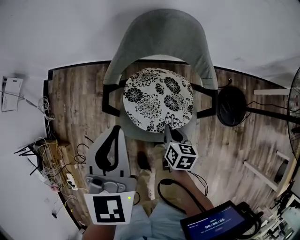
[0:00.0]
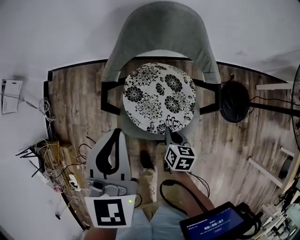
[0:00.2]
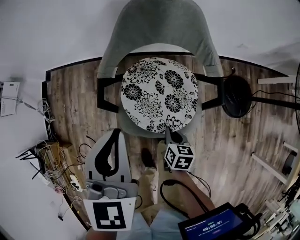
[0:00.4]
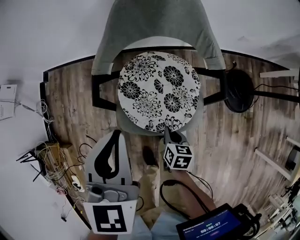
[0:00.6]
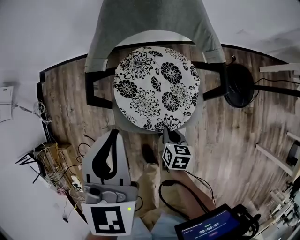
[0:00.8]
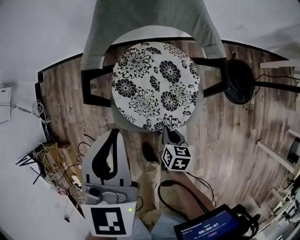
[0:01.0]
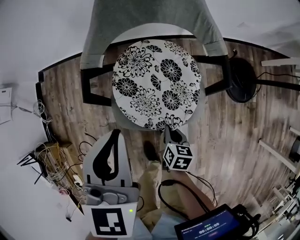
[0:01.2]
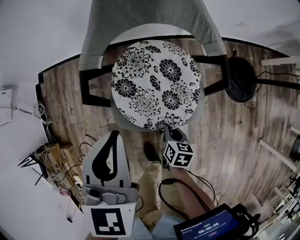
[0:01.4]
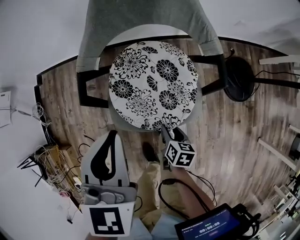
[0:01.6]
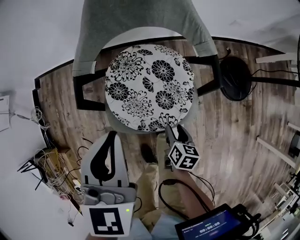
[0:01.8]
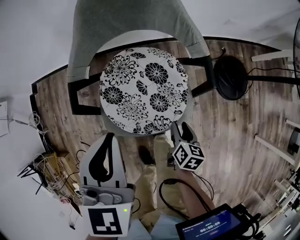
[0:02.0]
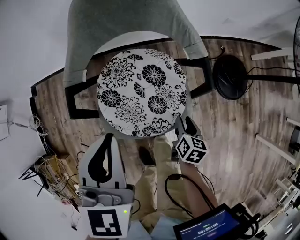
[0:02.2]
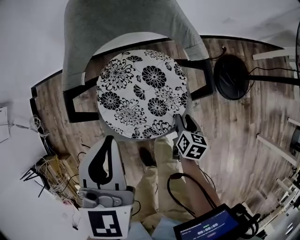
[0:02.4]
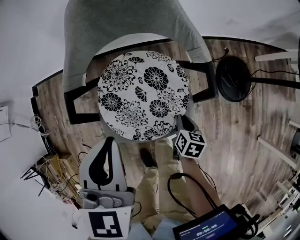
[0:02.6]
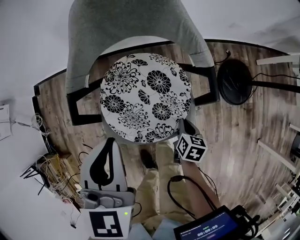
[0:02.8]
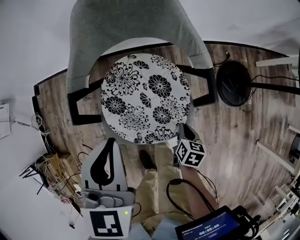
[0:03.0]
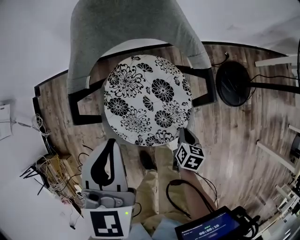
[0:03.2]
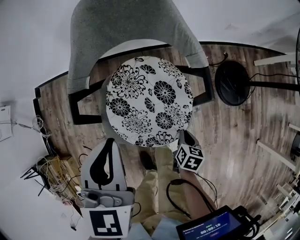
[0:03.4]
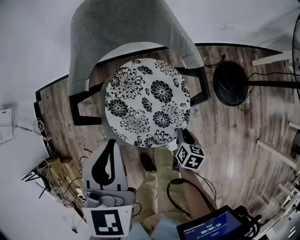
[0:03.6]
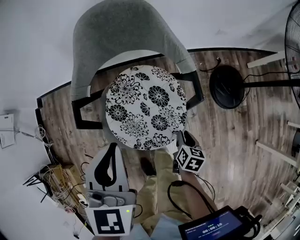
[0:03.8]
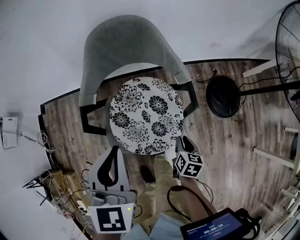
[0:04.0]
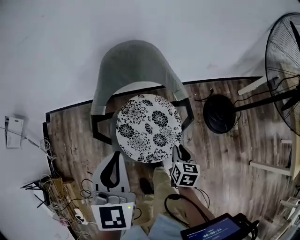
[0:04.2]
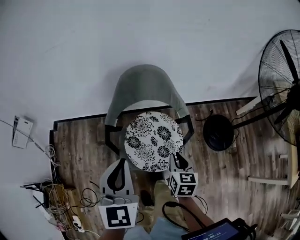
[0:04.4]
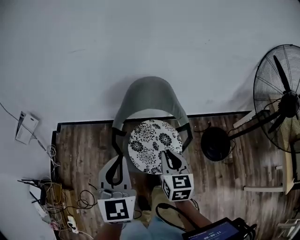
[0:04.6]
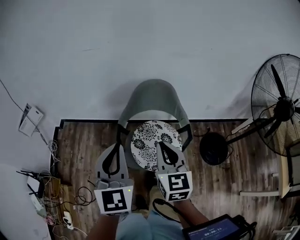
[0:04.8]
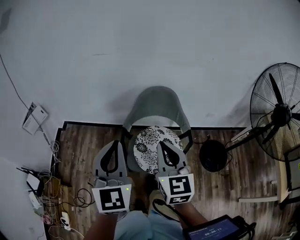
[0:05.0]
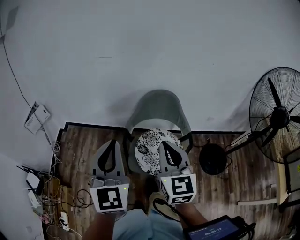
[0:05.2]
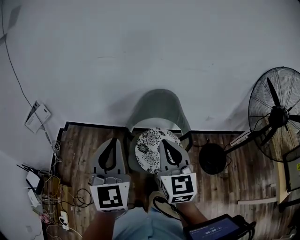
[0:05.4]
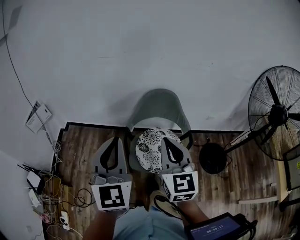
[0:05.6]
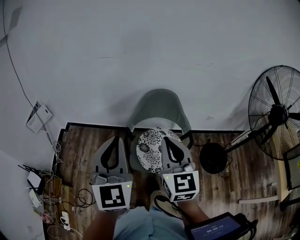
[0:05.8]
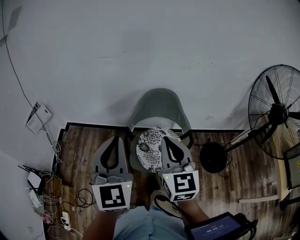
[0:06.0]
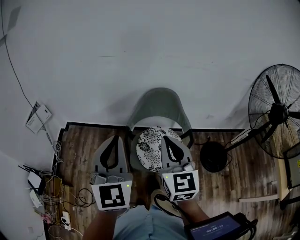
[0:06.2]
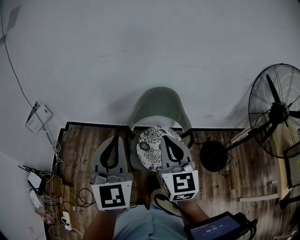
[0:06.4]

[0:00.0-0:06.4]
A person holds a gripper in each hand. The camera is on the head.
0:00.0 to 0:01.6: The right gripper moves downward and backward, about 20 cm, and opens its fingers. The left gripper travels downward and backward by about 10 cm.
0:01.6 to 0:03.2: The left gripper travels forward by about 5 cm. Meanwhile the right gripper goes about 10 cm to the right and forward, and closes its fingers.
0:03.2 to 0:04.8: The left gripper travels upward and backward by roughly 30 cm, and rotates about 30 degrees. The right gripper goes approximately 50 cm upward, angles its fingers upward, by some 50 degrees, and opens and closes again.
0:04.8 to 0:06.4: The right gripper moves upward, approximately 10 cm; the left gripper heads upward and to the left, covering roughly 10 cm.

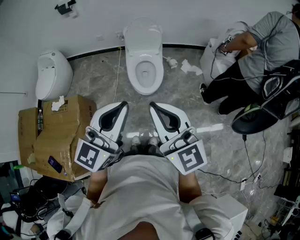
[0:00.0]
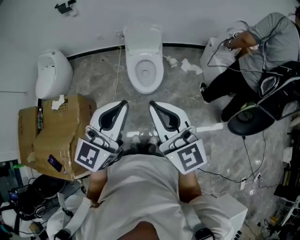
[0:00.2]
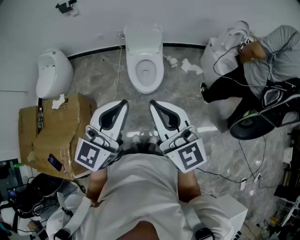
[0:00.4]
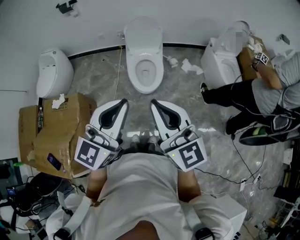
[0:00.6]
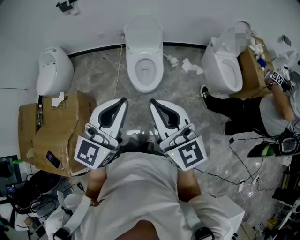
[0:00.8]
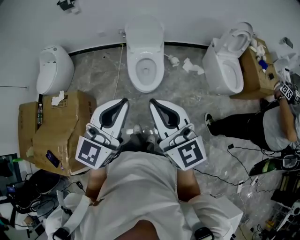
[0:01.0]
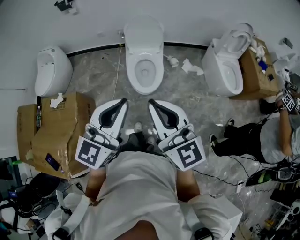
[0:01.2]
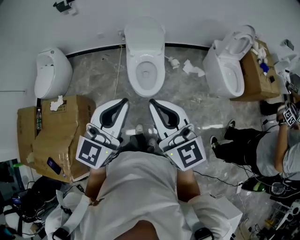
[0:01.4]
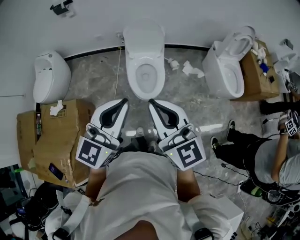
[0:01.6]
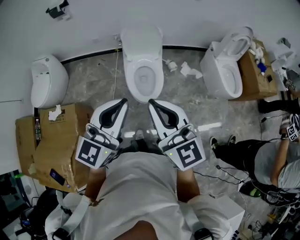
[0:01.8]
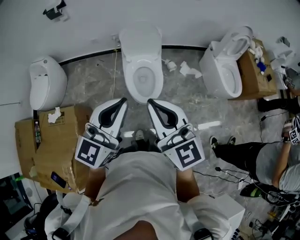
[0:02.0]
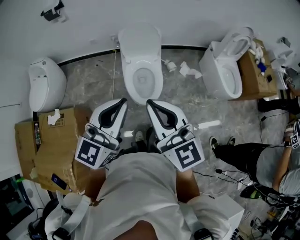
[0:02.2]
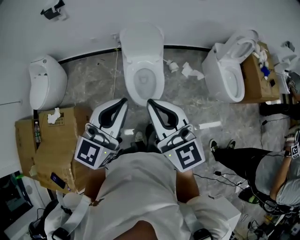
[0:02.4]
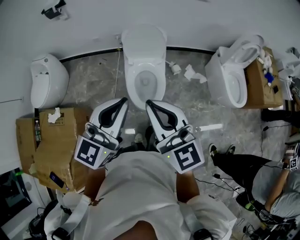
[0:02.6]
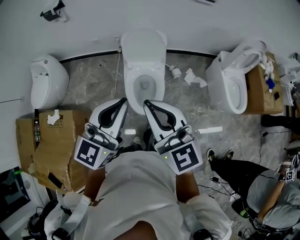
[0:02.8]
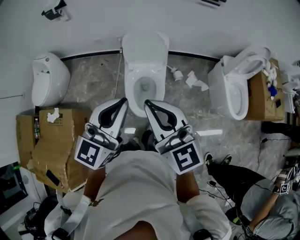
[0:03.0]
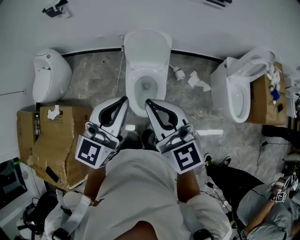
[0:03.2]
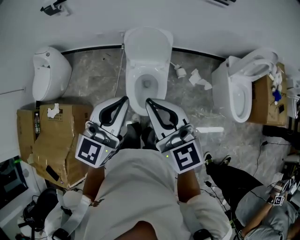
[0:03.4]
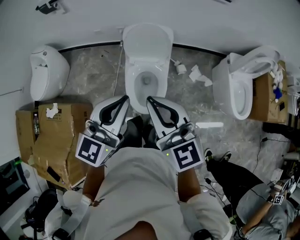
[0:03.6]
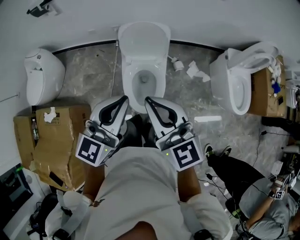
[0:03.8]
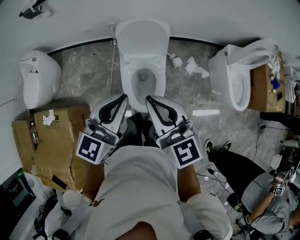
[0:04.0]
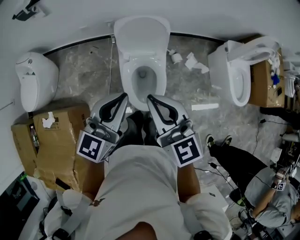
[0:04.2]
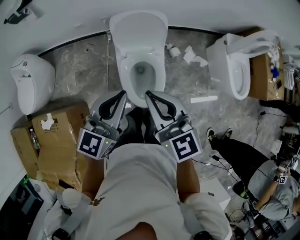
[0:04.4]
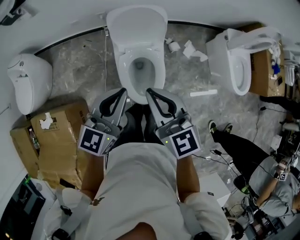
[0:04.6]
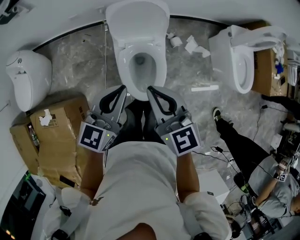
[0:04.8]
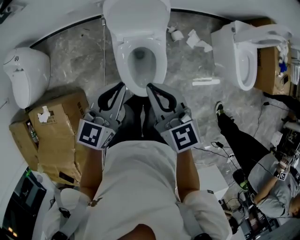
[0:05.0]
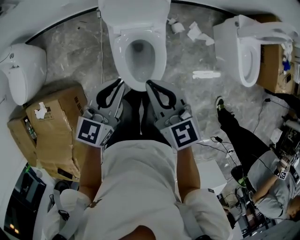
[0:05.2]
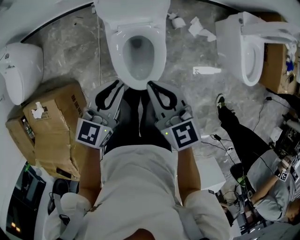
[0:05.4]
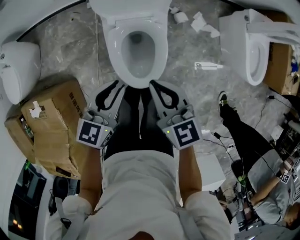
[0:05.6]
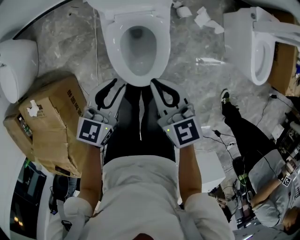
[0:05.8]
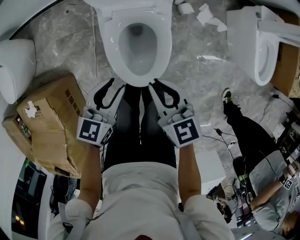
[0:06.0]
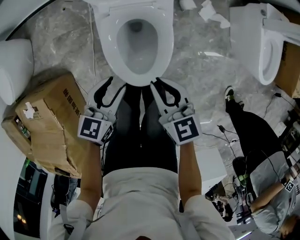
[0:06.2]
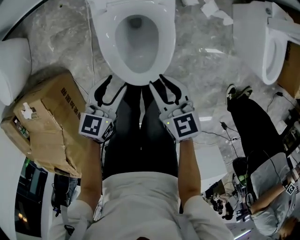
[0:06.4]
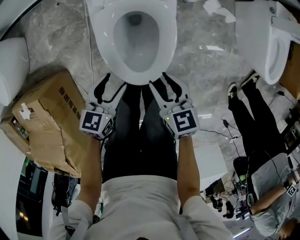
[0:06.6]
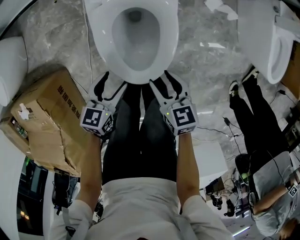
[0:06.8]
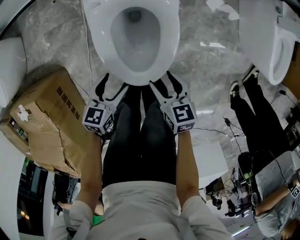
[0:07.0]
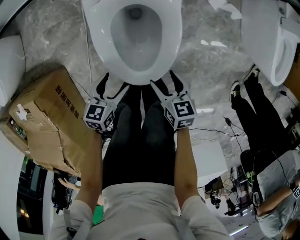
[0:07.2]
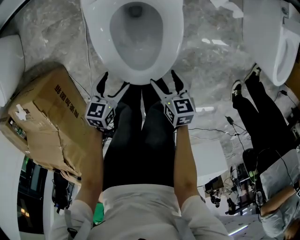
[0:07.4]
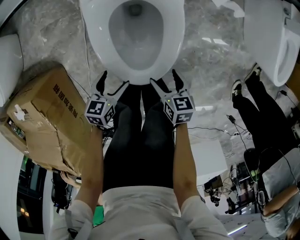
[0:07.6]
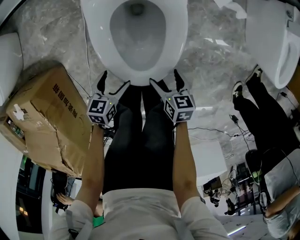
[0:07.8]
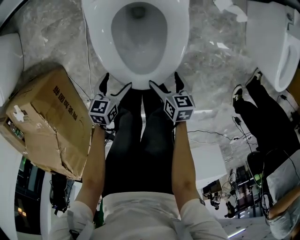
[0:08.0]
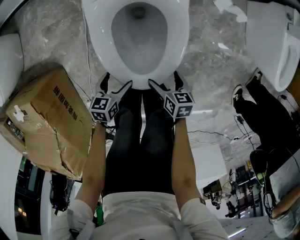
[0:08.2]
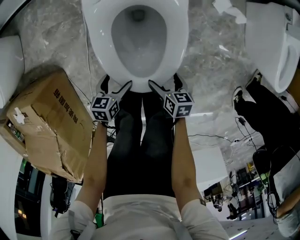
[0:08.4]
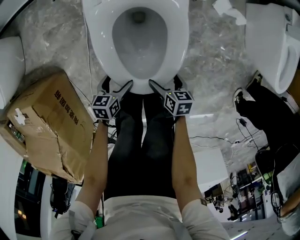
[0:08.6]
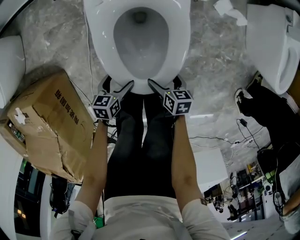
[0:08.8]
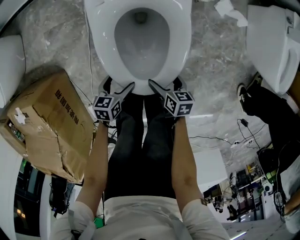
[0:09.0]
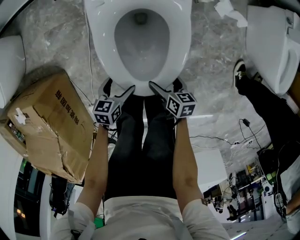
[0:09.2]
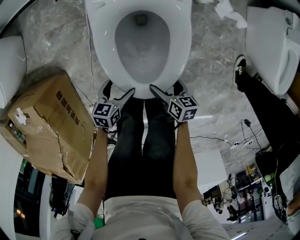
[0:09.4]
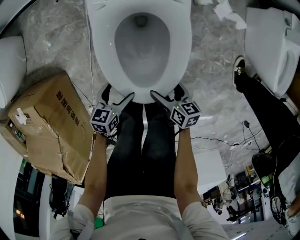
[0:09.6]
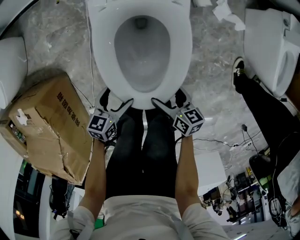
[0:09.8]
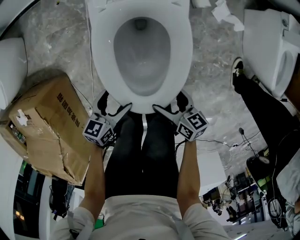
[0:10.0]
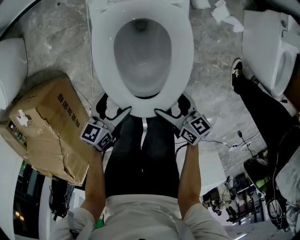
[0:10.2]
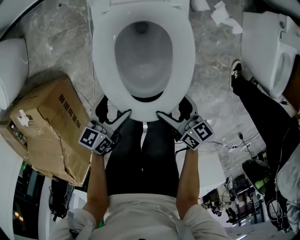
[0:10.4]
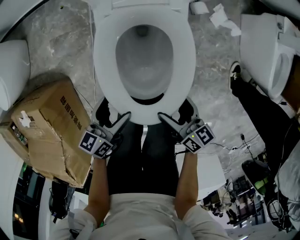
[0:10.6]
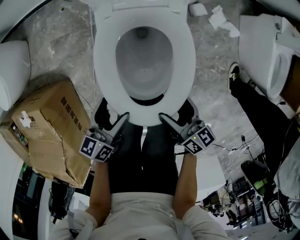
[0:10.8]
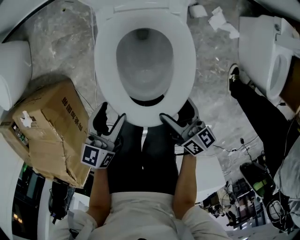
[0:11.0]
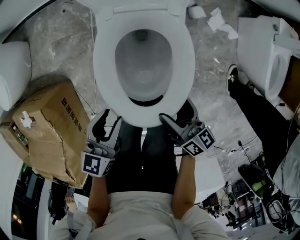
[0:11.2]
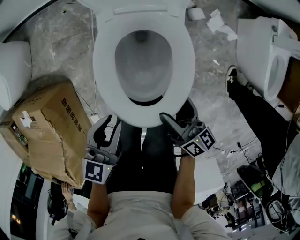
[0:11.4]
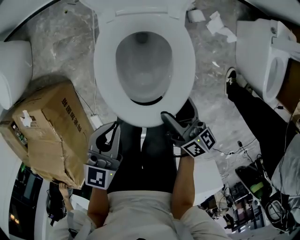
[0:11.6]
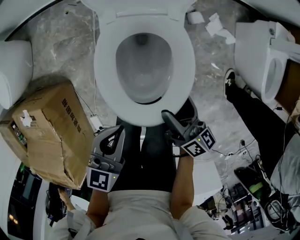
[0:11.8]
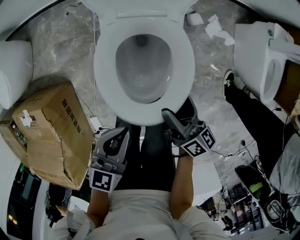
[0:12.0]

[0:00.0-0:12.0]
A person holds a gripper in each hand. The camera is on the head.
0:00.0 to 0:01.6: The grippers both shift forward by about 10 cm.
0:01.6 to 0:03.0: Both grippers move forward, about 20 cm.
0:03.0 to 0:04.4: The grippers both shift forward and downward by about 20 cm.
0:04.4 to 0:06.0: The grippers both shift downward by roughly 35 cm. The left gripper changes its angle by approximately 30 degrees, while the right gripper rotates about 30 degrees.
0:06.0 to 0:07.6: The two grippers go roughly 30 cm downward. The left gripper changes its angle by some 20 degrees, and opens up, while the right gripper turns by approximately 30 degrees, and opens up.
0:07.6 to 0:09.0: Both grippers move downward, approximately 5 cm.
0:09.0 to 0:10.4: Both grippers move upward, about 20 cm. The left gripper turns by some 20 degrees. Meanwhile the right gripper swivels some 20 degrees.
0:10.4 to 0:12.0: The left gripper is displaced upward by approximately 20 cm, turns by approximately 30 degrees, and closes up. The right gripper moves upward and forward, approximately 15 cm, and rotates approximately 20 degrees.

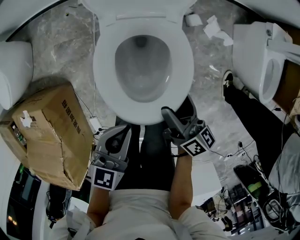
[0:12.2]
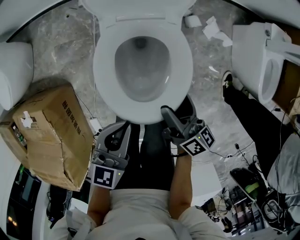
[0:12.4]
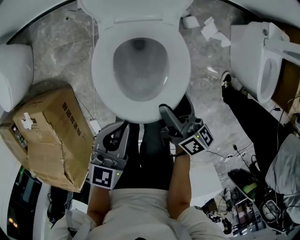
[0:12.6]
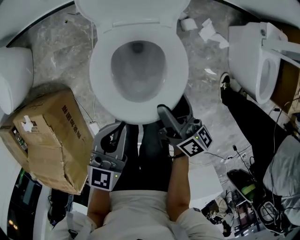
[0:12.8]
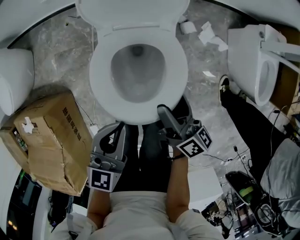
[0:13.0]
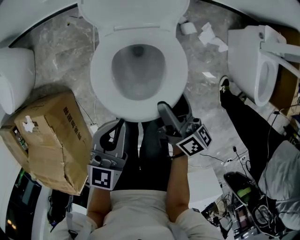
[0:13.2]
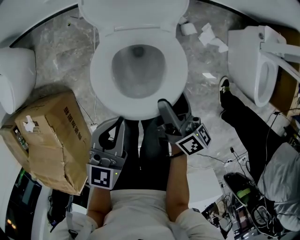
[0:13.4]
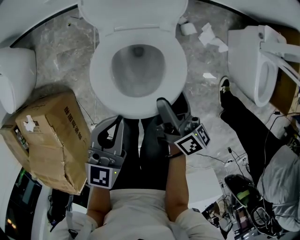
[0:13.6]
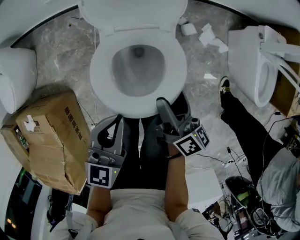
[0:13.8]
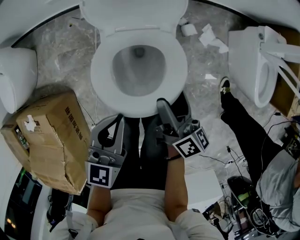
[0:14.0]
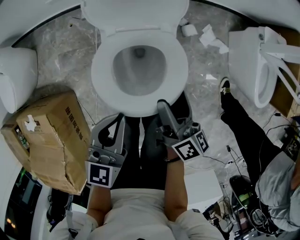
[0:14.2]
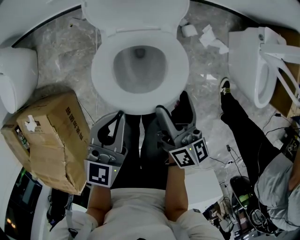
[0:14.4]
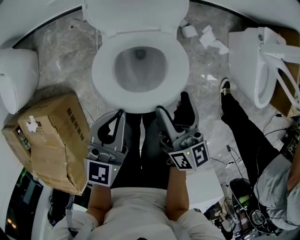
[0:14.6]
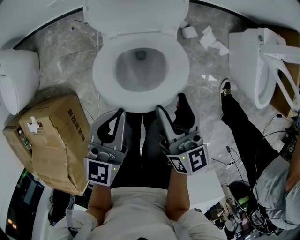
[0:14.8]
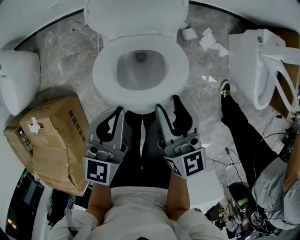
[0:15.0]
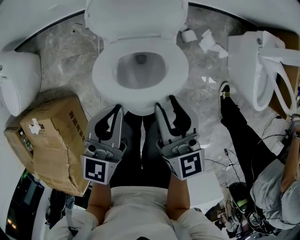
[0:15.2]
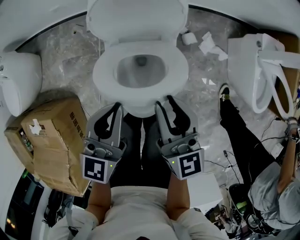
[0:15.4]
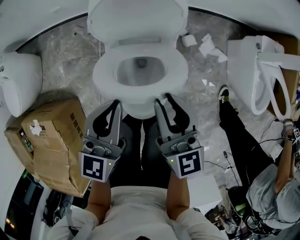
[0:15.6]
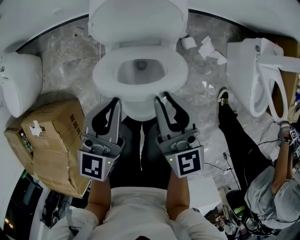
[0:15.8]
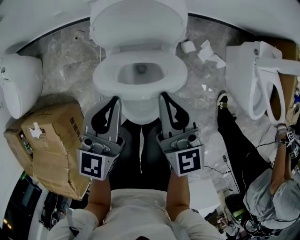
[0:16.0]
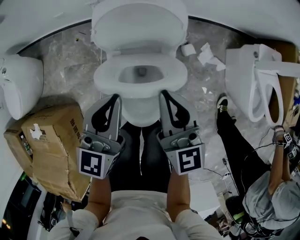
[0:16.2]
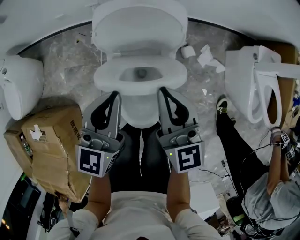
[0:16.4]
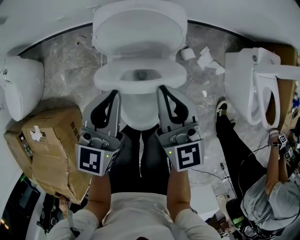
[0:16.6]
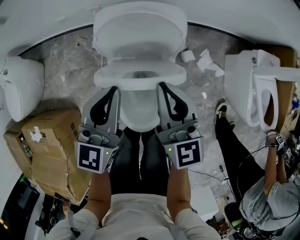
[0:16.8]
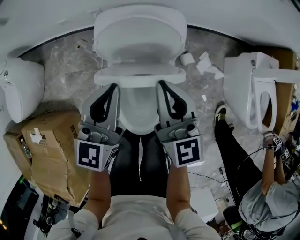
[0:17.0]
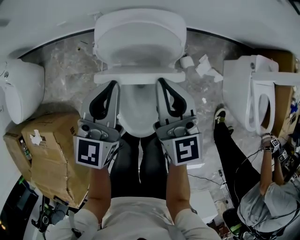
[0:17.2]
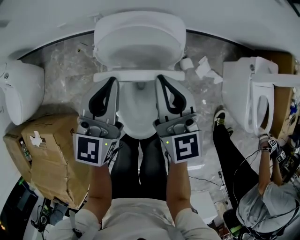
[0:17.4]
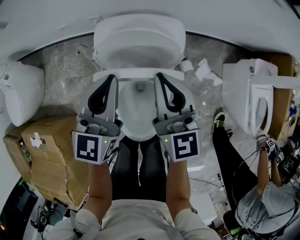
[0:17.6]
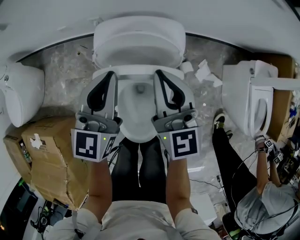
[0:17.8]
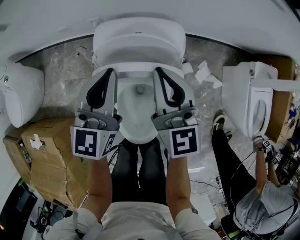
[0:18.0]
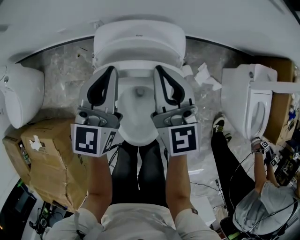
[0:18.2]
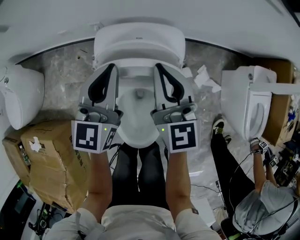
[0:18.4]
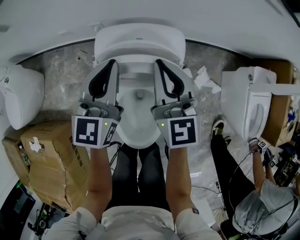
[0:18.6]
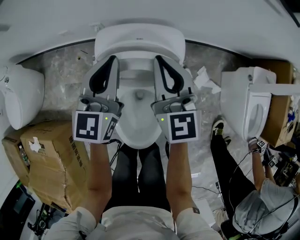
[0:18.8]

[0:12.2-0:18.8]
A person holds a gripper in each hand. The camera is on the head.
0:12.2 to 0:13.8: The left gripper shifts about 5 cm forward. Meanwhile the right gripper shifts by roughly 5 cm.
0:13.8 to 0:15.4: The right gripper heads upward, covering roughly 10 cm, rotates around the line of its fingers by roughly 40 degrees, counterclockwise from behind, and closes its fingers. The left gripper shifts some 10 cm forward.
0:15.4 to 0:17.2: Both grippers move forward, about 15 cm.
0:17.2 to 0:18.8: The grippers both shift forward by roughly 10 cm.
